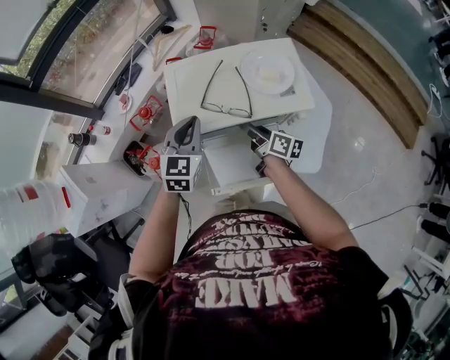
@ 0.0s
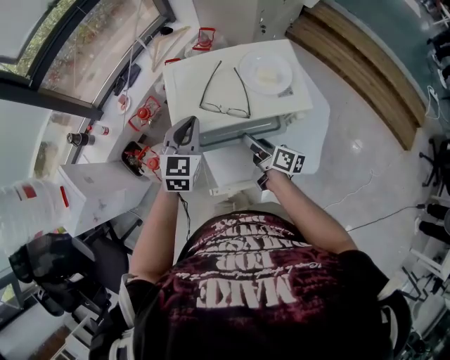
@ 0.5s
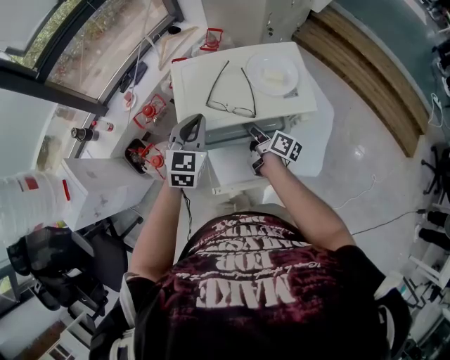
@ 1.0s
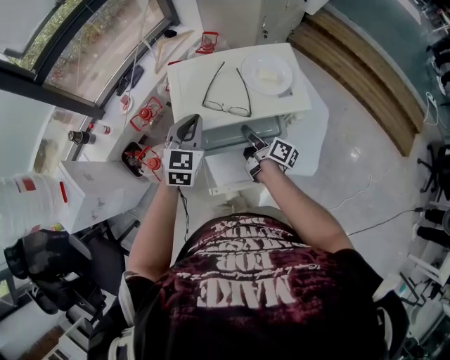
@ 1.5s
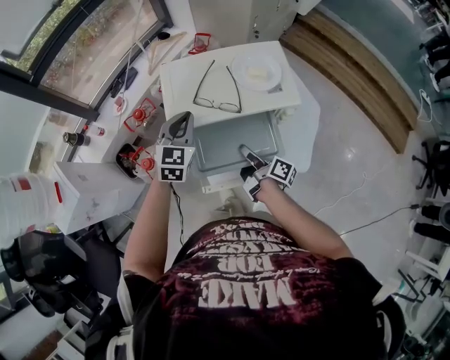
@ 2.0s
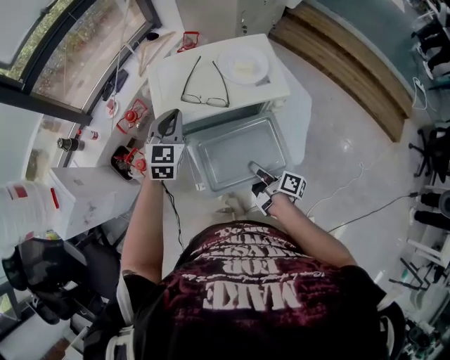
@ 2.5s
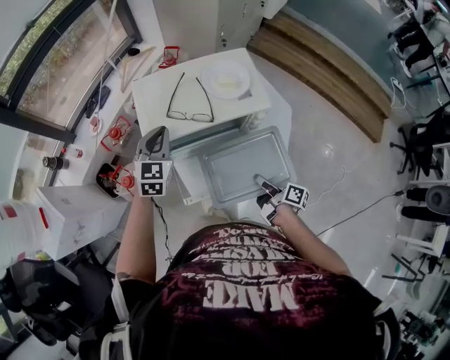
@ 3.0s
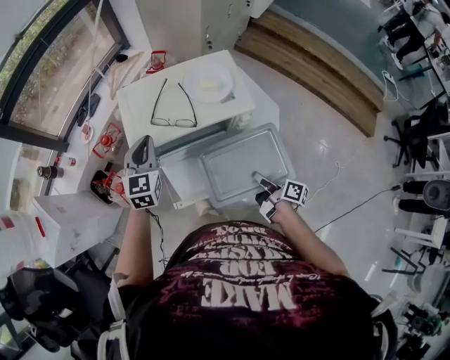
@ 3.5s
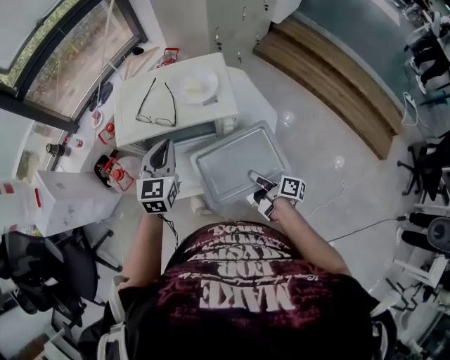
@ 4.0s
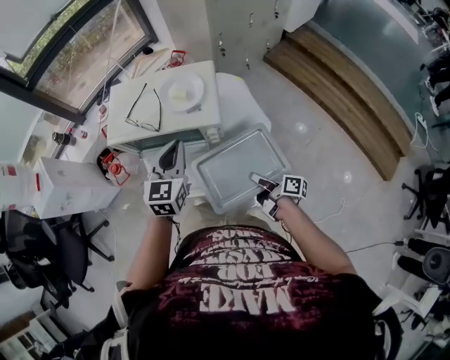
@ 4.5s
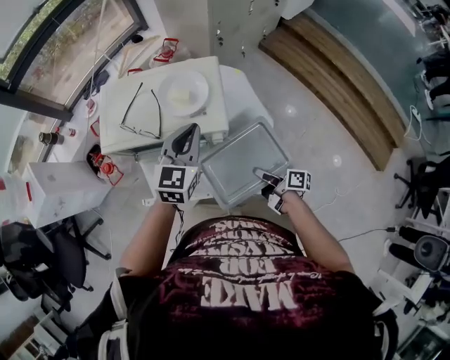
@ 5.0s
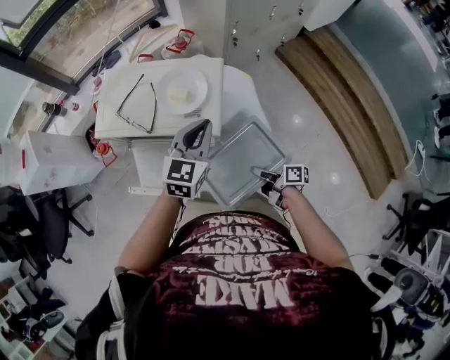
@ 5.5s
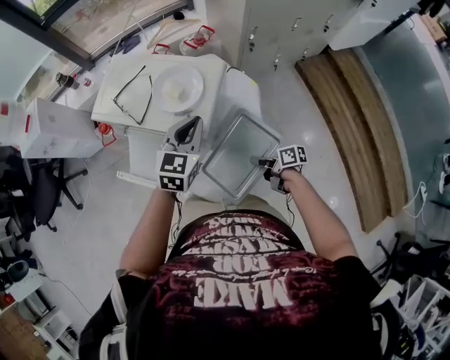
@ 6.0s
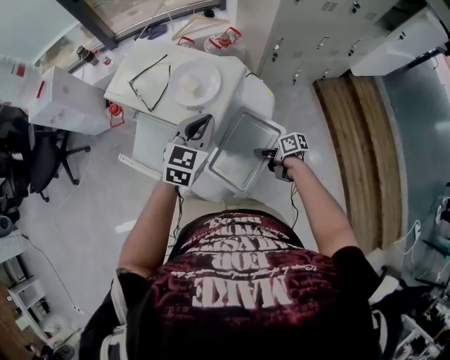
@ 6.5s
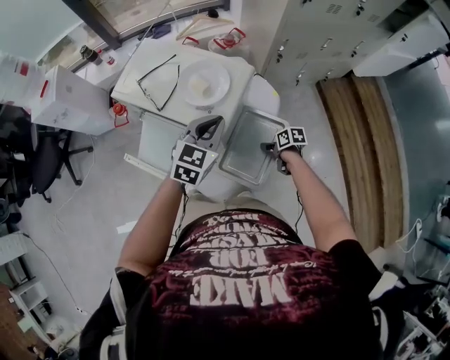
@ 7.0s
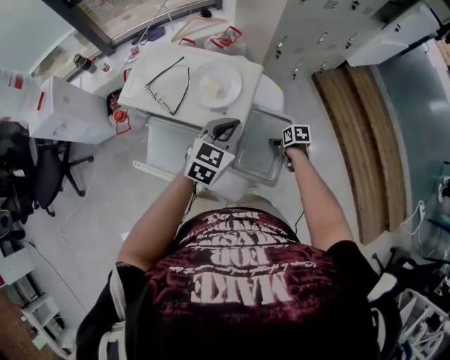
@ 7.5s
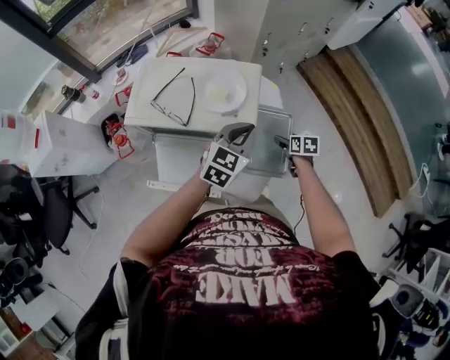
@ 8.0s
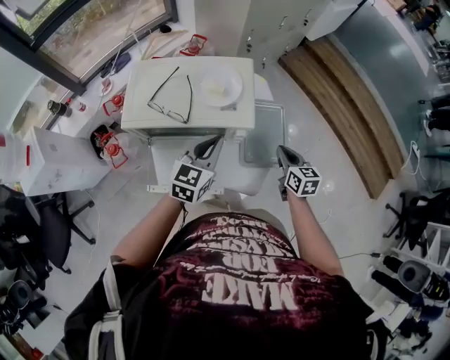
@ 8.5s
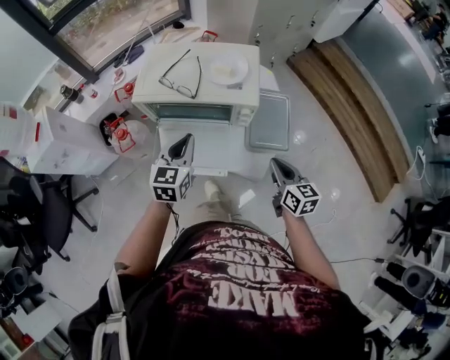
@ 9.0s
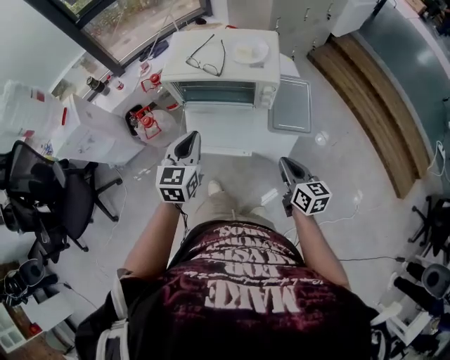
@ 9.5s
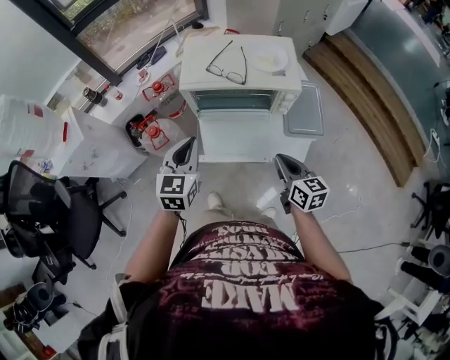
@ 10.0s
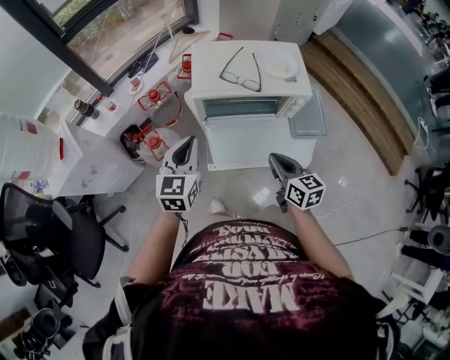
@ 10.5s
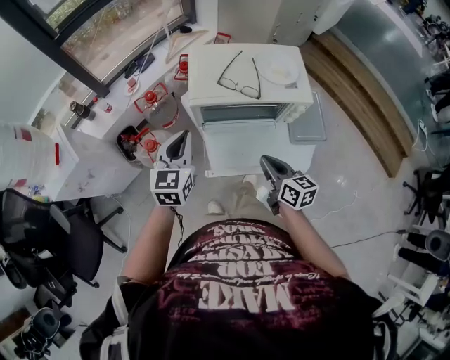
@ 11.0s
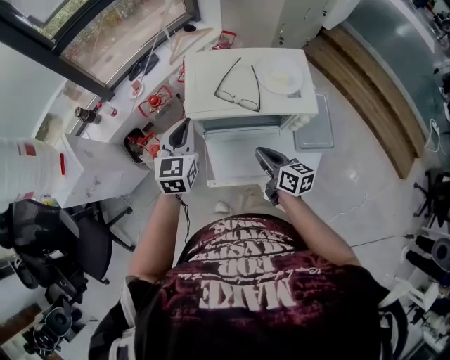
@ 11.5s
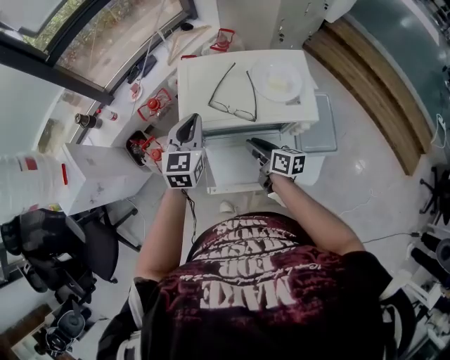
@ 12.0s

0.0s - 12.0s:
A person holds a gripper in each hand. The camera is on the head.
0.0s - 2.0s: The right gripper moves forward and backward over about 10 cm, changing direction 2 times, and turns by some 20 degrees.
2.0s - 4.0s: The right gripper goes roughly 25 cm to the right and backward, while the left gripper shifts some 15 cm to the right and backward.
4.0s - 6.0s: The left gripper shifts by about 20 cm, while the right gripper moves some 25 cm, and rotates approximately 50 degrees.
6.0s - 8.0s: The left gripper turns by about 30 degrees; the right gripper swivels roughly 50 degrees, and opens up.
8.0s - 10.0s: The right gripper heads backward, to the left and upward, covering some 40 cm, tilts its fingers approximately 30 degrees upward, and closes. The left gripper shifts approximately 40 cm to the left and backward.
10.0s - 12.0s: The right gripper travels forward and downward by approximately 25 cm, and changes its angle by approximately 30 degrees. Meanwhile the left gripper shifts approximately 20 cm forward.

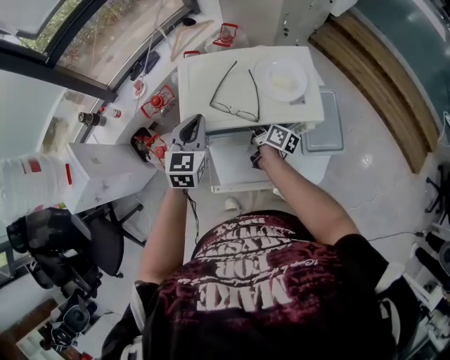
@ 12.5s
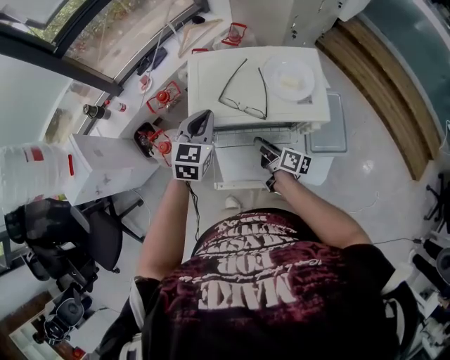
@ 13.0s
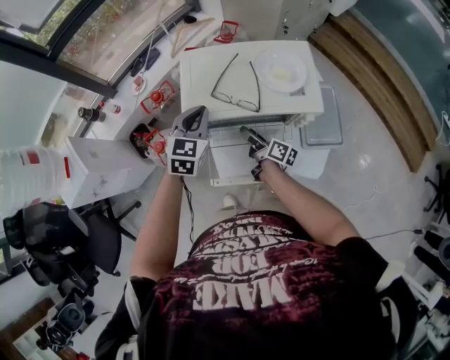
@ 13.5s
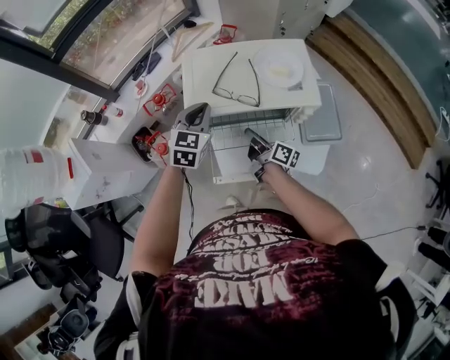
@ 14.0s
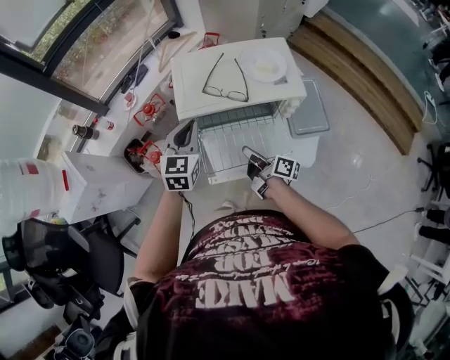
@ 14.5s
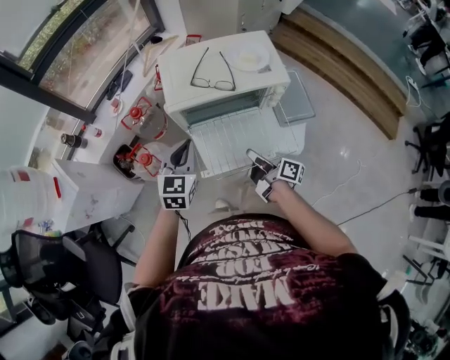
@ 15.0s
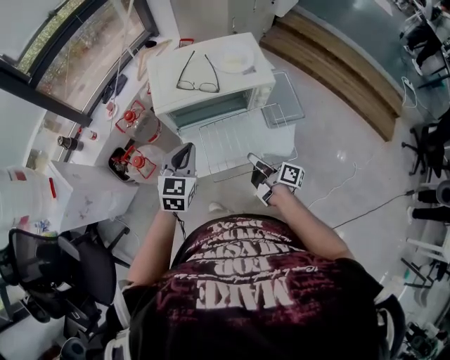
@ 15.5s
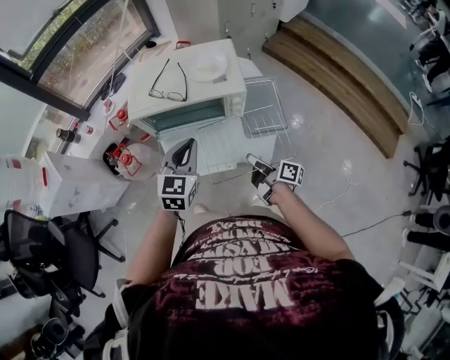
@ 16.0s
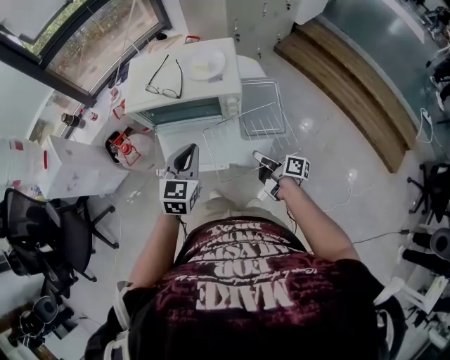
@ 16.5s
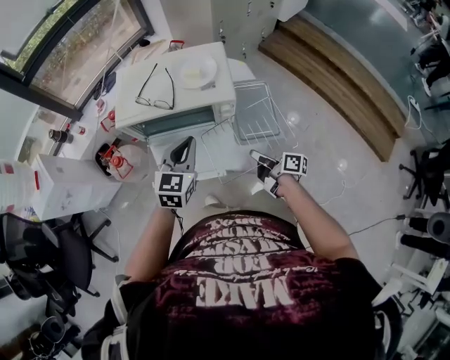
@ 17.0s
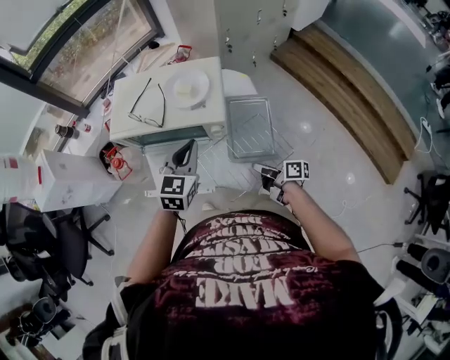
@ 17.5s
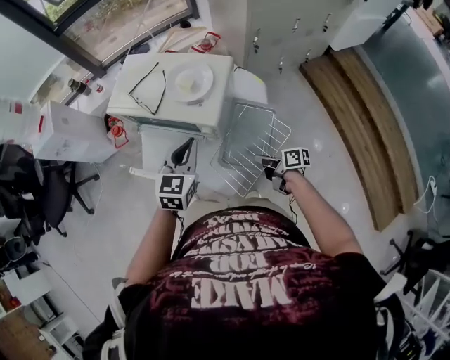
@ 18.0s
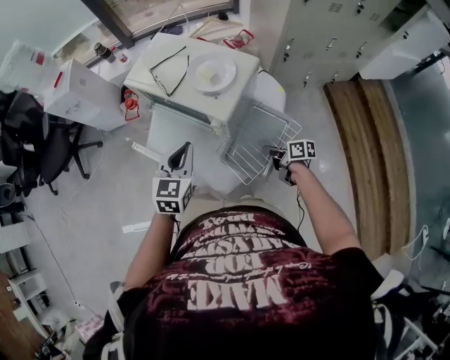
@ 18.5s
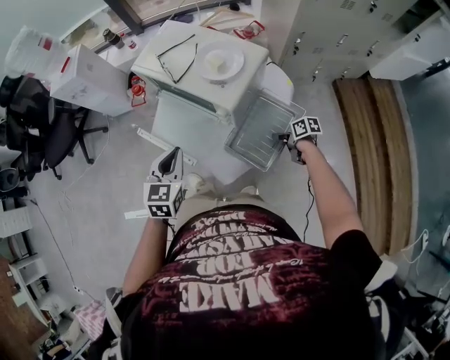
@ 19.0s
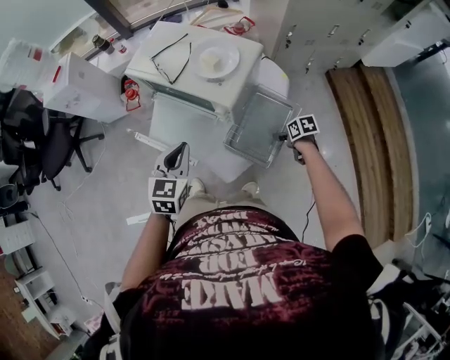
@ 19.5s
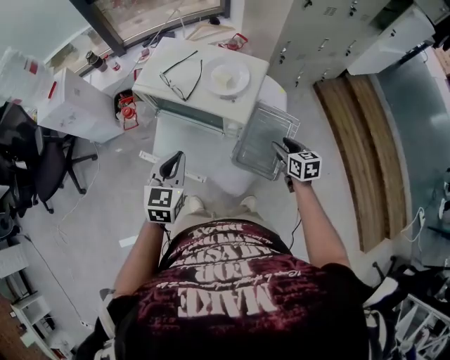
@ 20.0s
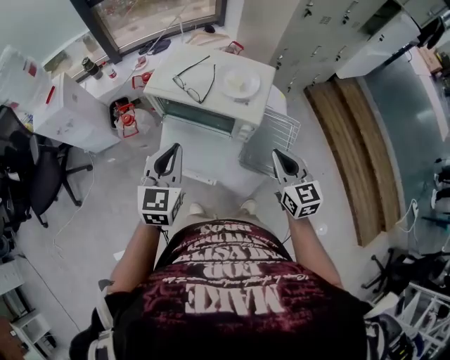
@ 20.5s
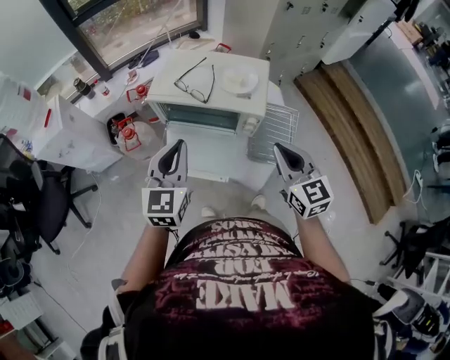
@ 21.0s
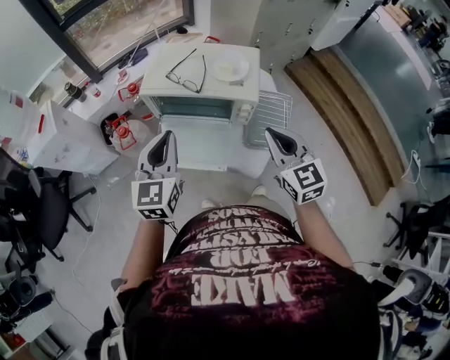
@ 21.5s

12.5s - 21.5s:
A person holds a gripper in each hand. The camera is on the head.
12.5s - 14.5s: The right gripper heads backward, covering approximately 15 cm, and closes. The left gripper heads backward, covering approximately 5 cm.
14.5s - 17.0s: The right gripper moves to the right, about 25 cm, while the left gripper heads to the right and backward, covering approximately 25 cm.
17.0s - 19.5s: The left gripper moves some 10 cm, and turns by about 40 degrees. The right gripper moves roughly 30 cm, angles its fingers downward, by some 50 degrees, and opens its fingers.
19.5s - 21.5s: The right gripper goes roughly 35 cm upward, tips its fingers upward by approximately 40 degrees, and closes its fingers. The left gripper shifts by about 20 cm, and rotates some 20 degrees.

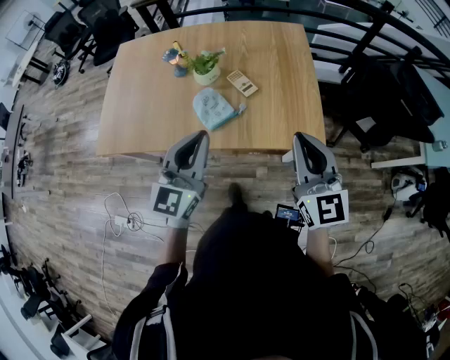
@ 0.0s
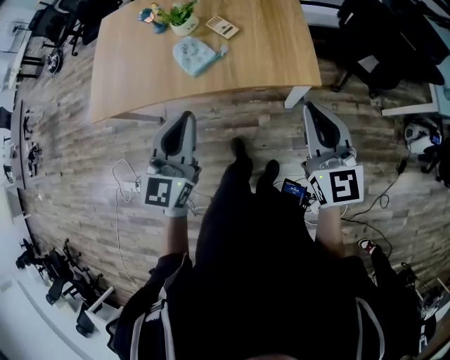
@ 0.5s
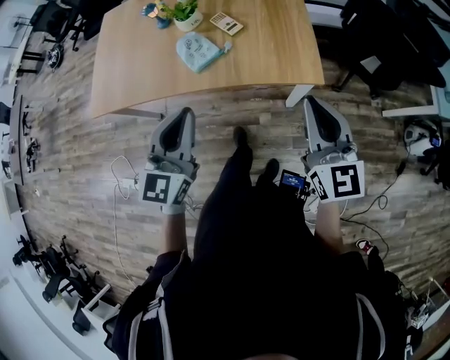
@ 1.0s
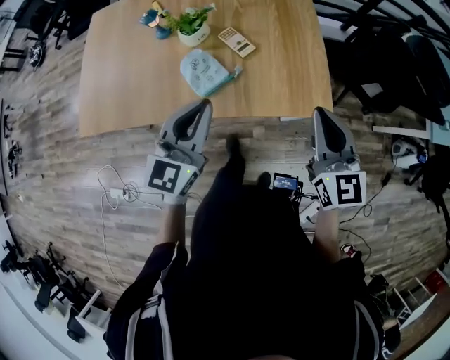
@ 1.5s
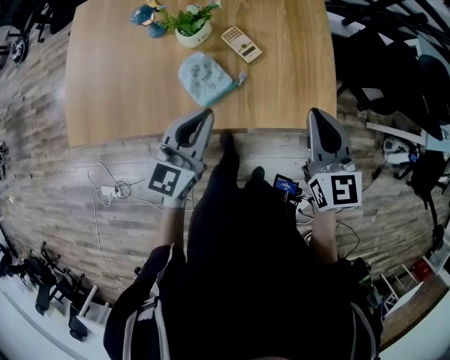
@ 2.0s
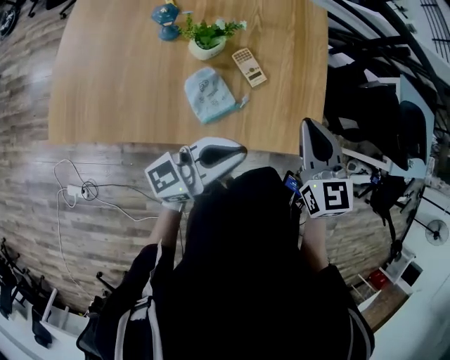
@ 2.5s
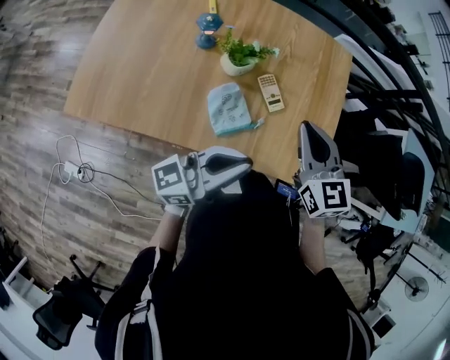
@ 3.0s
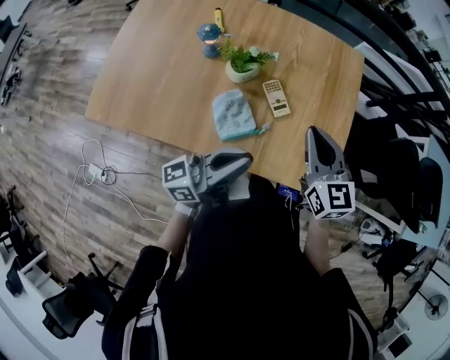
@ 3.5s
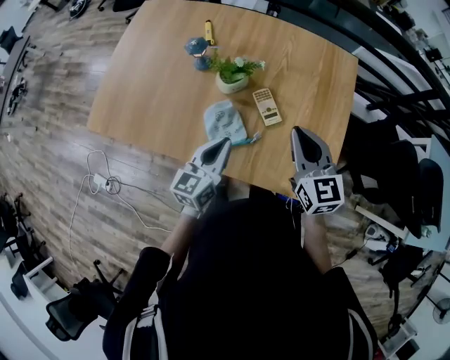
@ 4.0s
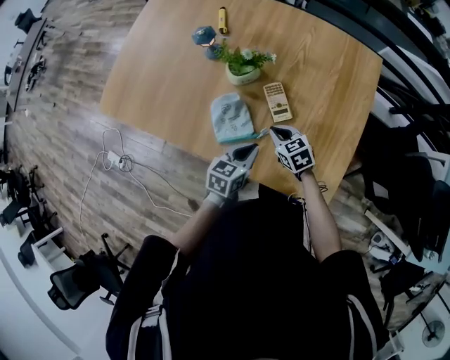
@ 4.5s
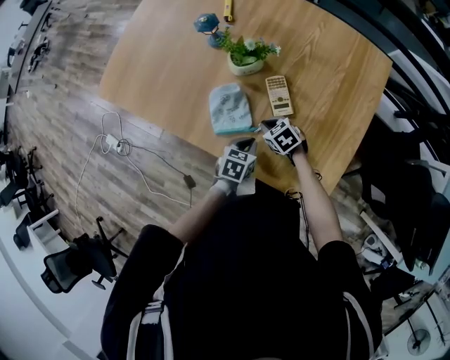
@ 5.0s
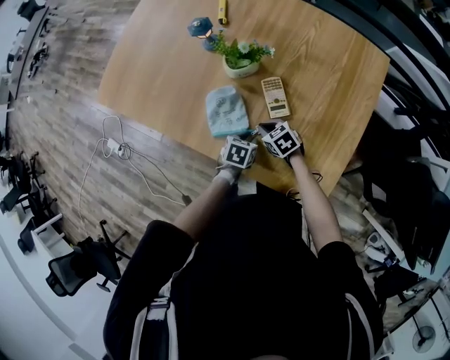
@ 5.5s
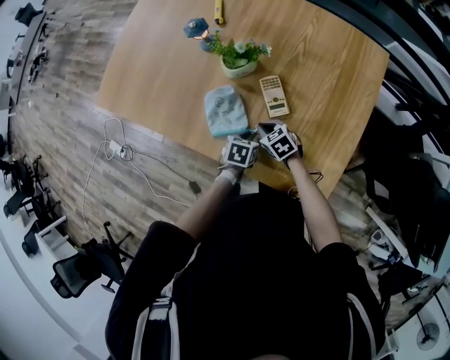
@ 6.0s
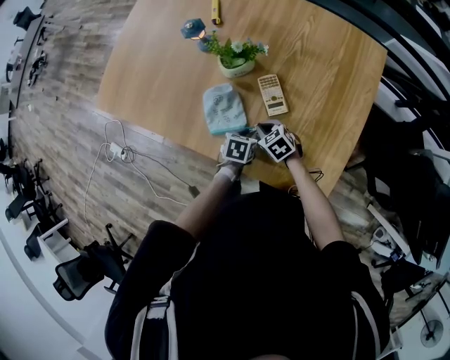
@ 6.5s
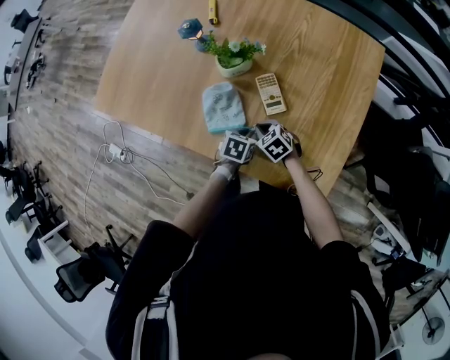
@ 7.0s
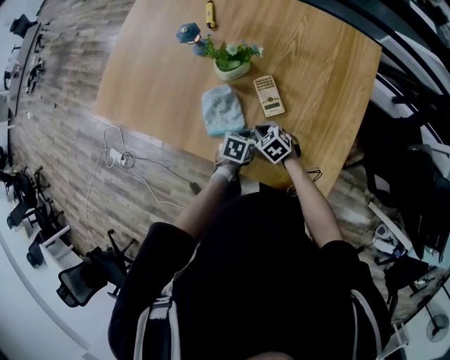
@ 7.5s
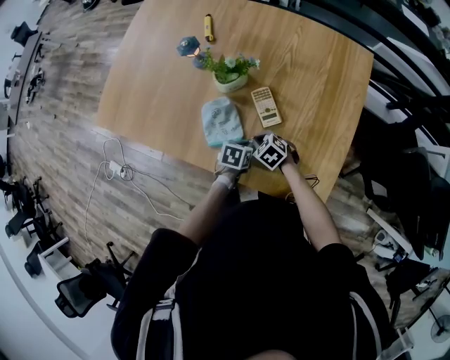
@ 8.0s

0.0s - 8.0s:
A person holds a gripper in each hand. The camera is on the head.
0.0s - 2.0s: The right gripper heads forward and downward, covering roughly 15 cm, while the left gripper travels downward and forward by about 15 cm.
2.0s - 4.0s: The left gripper shifts by approximately 10 cm, and swivels roughly 20 degrees; the right gripper ends up roughly 15 cm from where it was, and changes its angle by approximately 20 degrees.
4.0s - 6.0s: Both grippers move downward, some 30 cm. The right gripper tips its fingers downward by about 30 degrees. Meanwhile the left gripper angles its fingers downward, by some 50 degrees.
6.0s - 8.0s: The grippers make only small movements.
